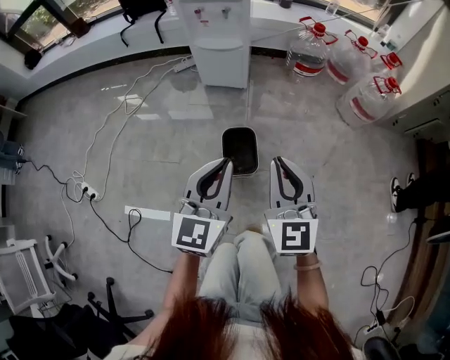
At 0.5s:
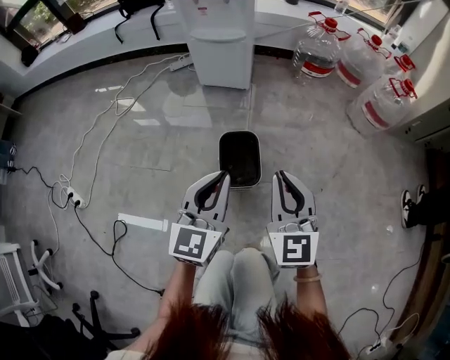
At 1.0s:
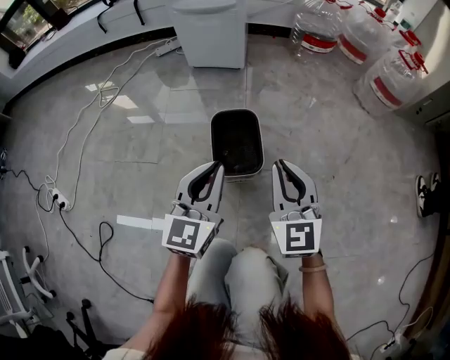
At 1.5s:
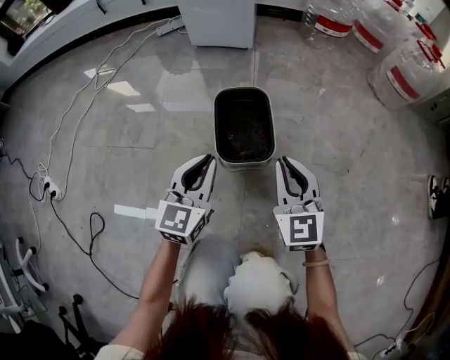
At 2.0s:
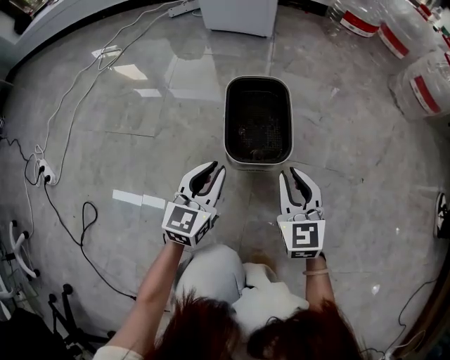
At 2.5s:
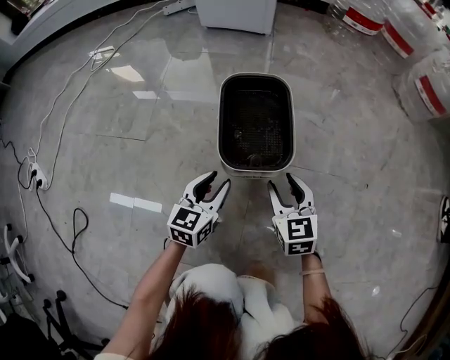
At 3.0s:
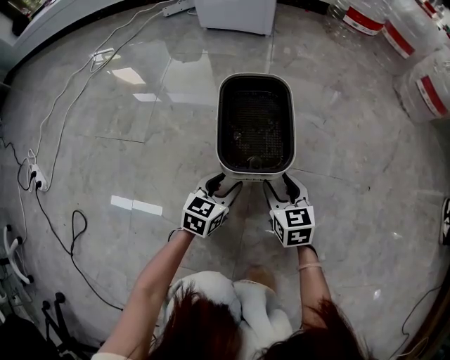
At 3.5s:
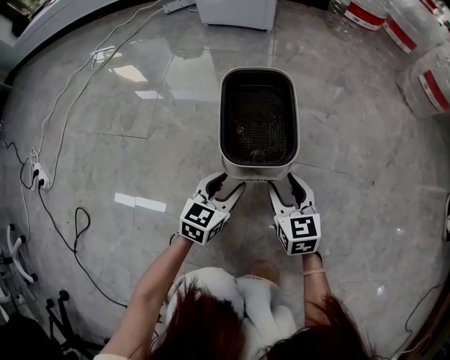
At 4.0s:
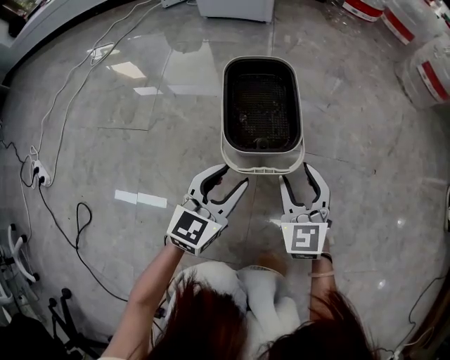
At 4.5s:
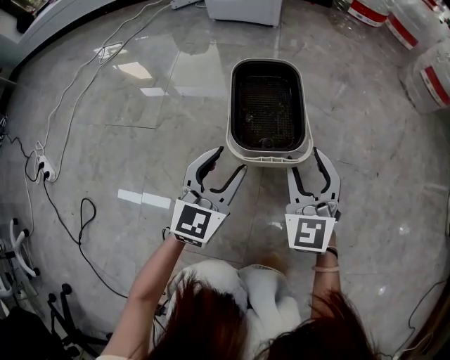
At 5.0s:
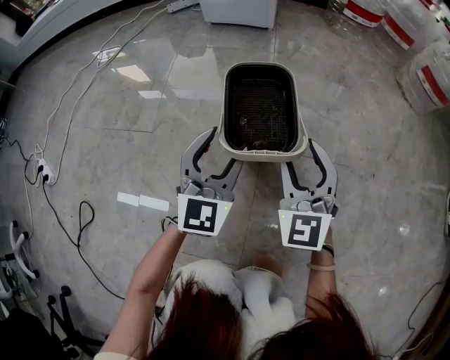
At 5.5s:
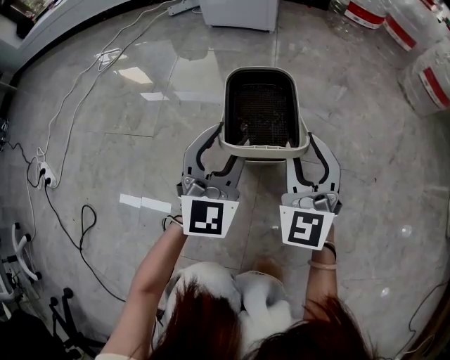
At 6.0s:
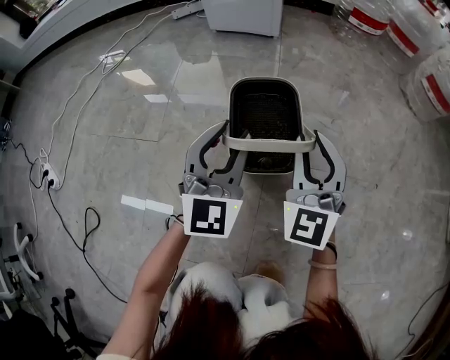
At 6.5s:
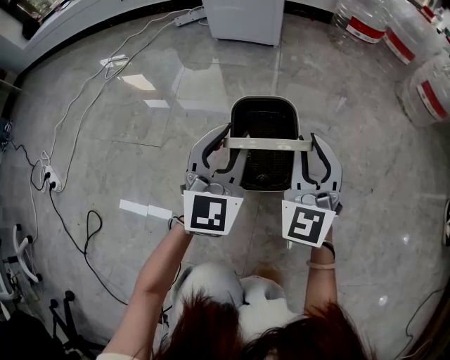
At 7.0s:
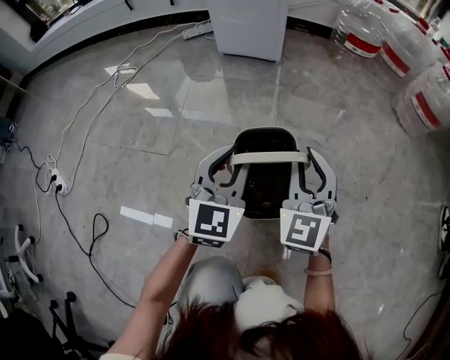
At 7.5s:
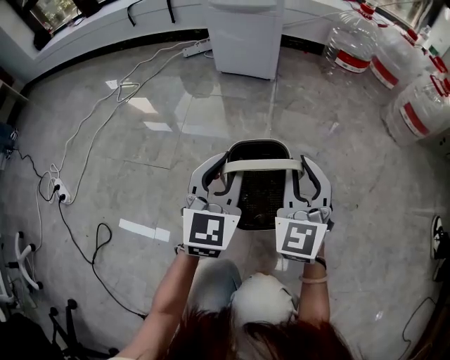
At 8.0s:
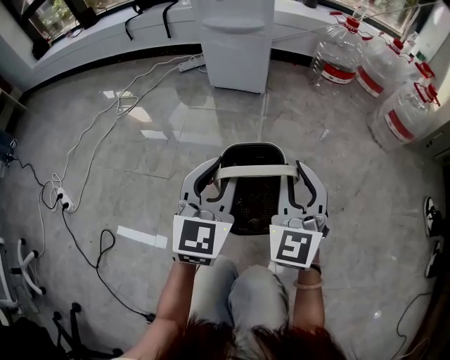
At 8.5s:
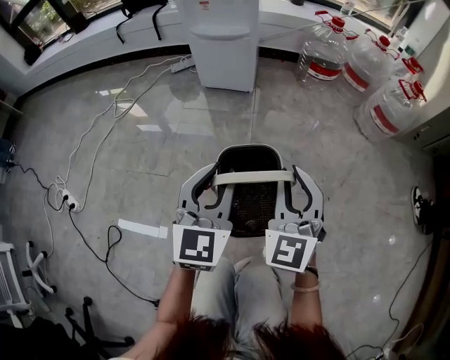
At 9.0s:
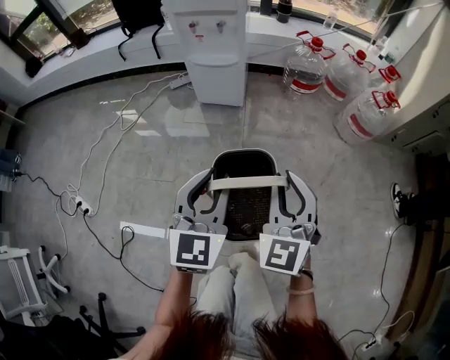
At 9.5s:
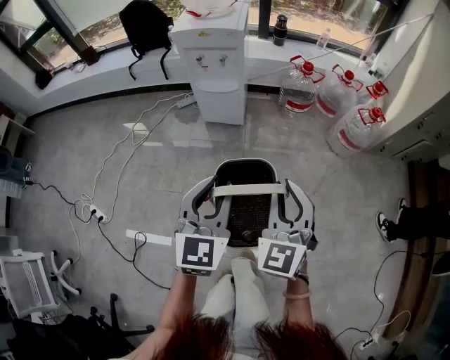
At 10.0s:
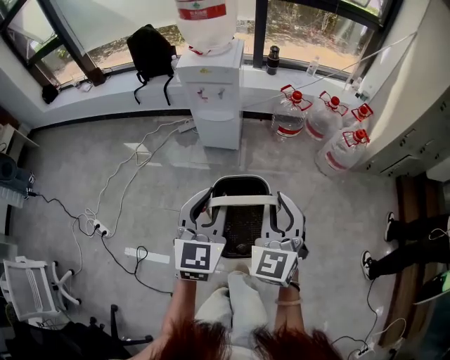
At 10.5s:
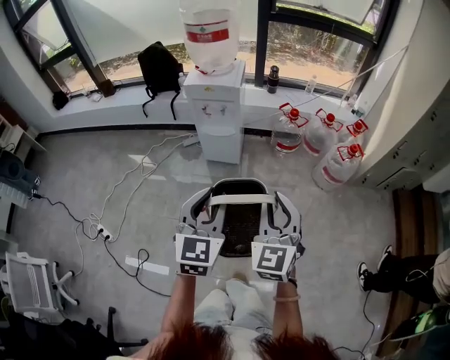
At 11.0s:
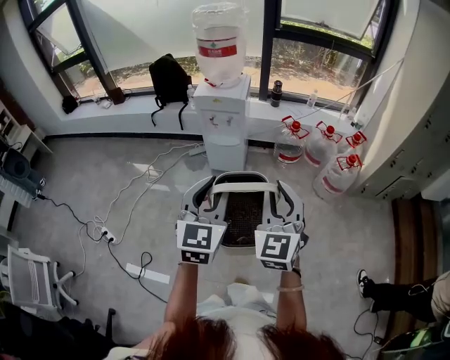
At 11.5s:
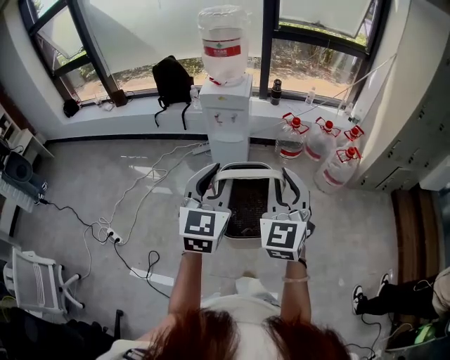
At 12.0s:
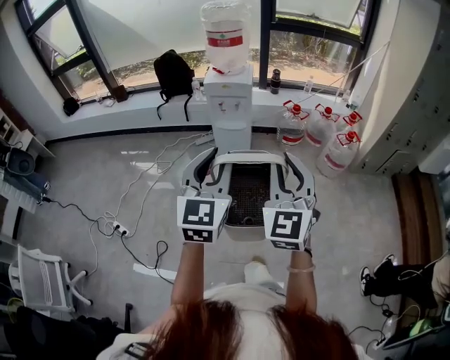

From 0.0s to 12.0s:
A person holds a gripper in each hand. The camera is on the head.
From 0.0s to 2.0s: Both grippers move downward, about 50 cm.
From 2.0s to 4.0s: The right gripper goes downward and returns, roughly 15 cm each way, and opens up. The left gripper moves some 15 cm downward and comes back, and opens its fingers.
From 4.0s to 6.0s: The grippers both shift upward and forward by approximately 15 cm. The left gripper turns by approximately 30 degrees; the right gripper changes its angle by some 20 degrees, and closes its fingers.
From 6.0s to 8.0s: The two grippers go about 20 cm upward.
From 8.0s to 10.0s: The grippers both shift upward by some 50 cm.
From 10.0s to 12.0s: The grippers both shift upward and backward by roughly 25 cm.

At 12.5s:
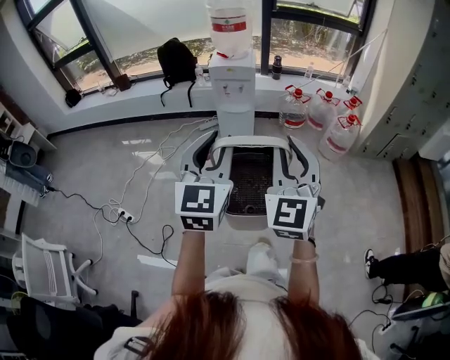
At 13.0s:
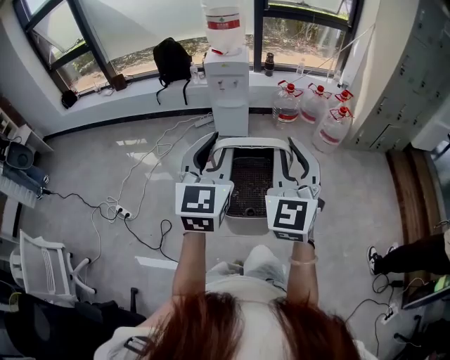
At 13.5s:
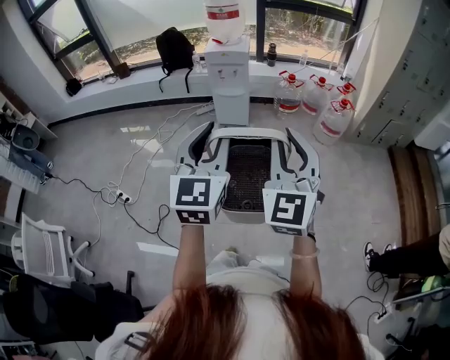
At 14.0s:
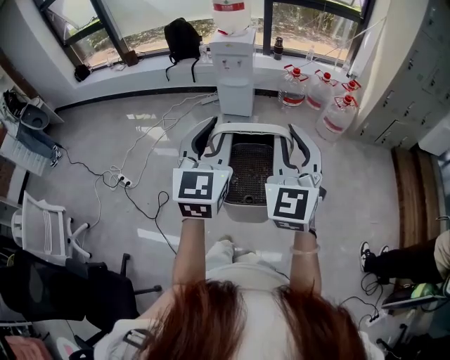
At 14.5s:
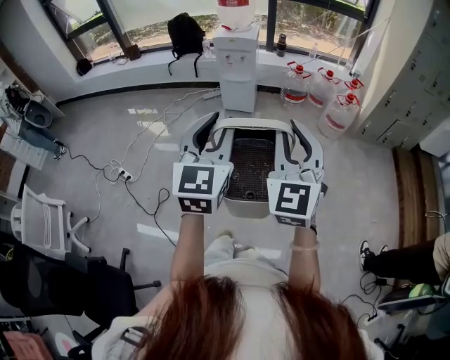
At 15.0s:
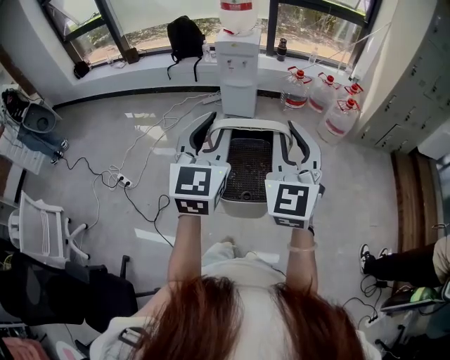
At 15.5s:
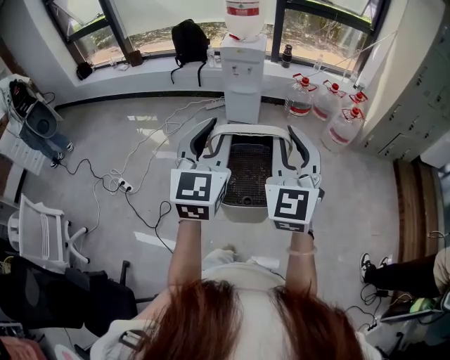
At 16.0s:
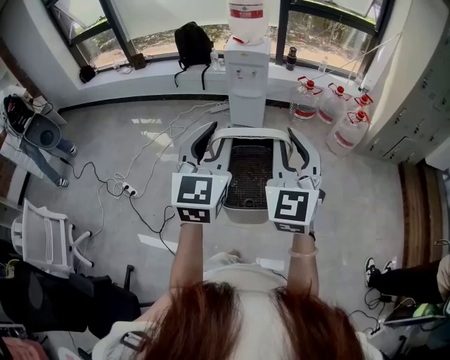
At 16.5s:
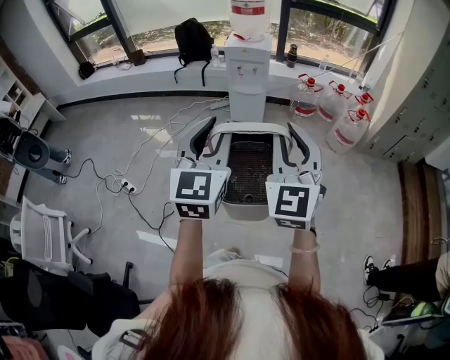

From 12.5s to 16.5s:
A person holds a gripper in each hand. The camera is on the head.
From 12.5s to 14.5s: Both grippers move backward and to the right, some 15 cm.
From 14.5s to 16.5s: The left gripper is displaced to the left and forward by some 10 cm; the right gripper travels forward and to the left by some 10 cm.

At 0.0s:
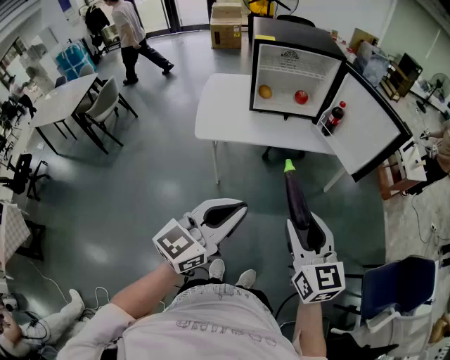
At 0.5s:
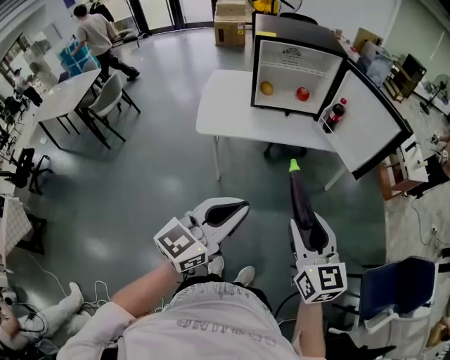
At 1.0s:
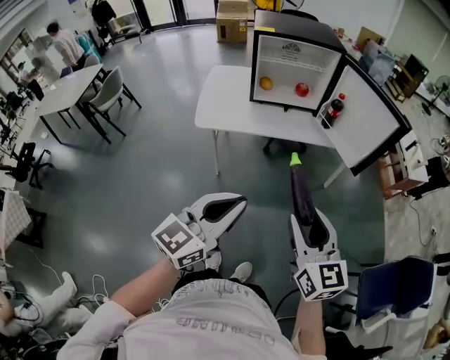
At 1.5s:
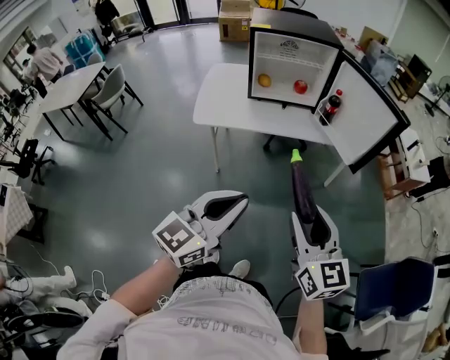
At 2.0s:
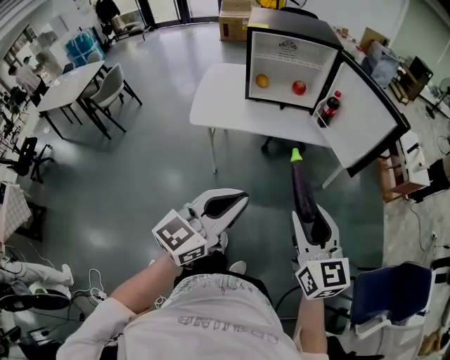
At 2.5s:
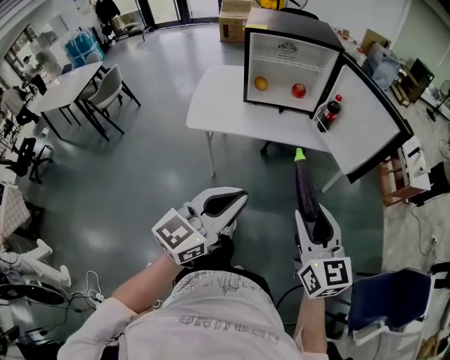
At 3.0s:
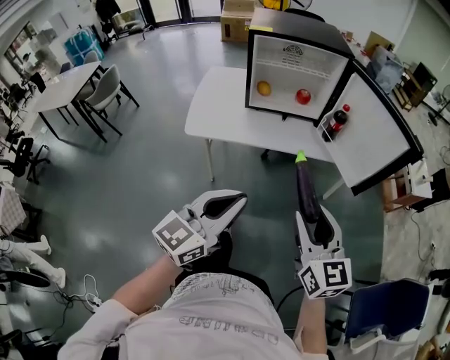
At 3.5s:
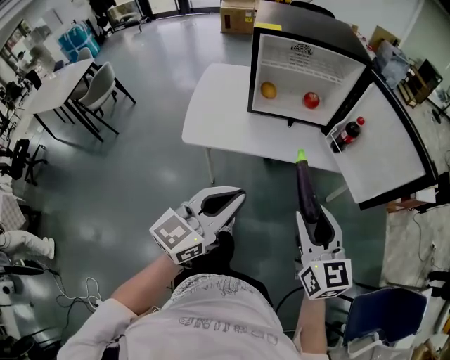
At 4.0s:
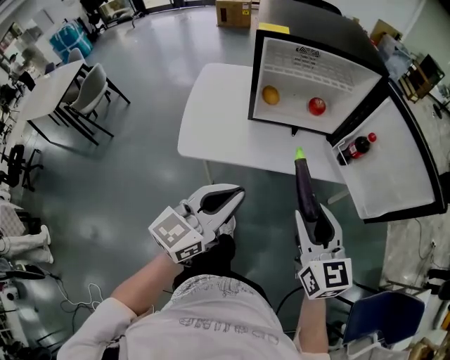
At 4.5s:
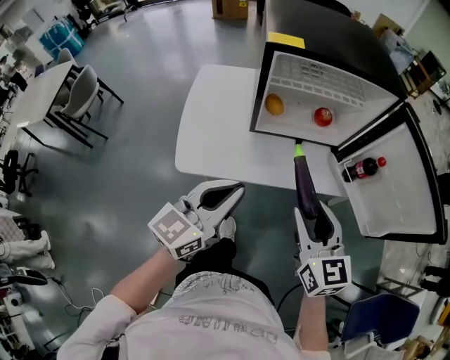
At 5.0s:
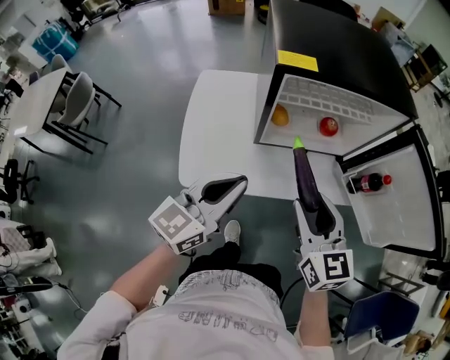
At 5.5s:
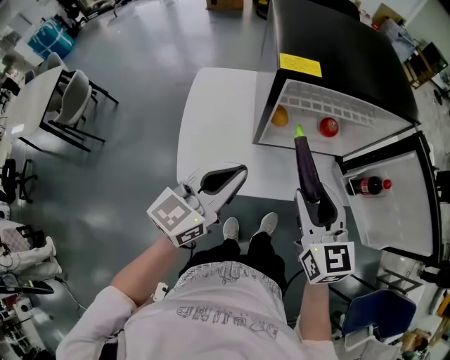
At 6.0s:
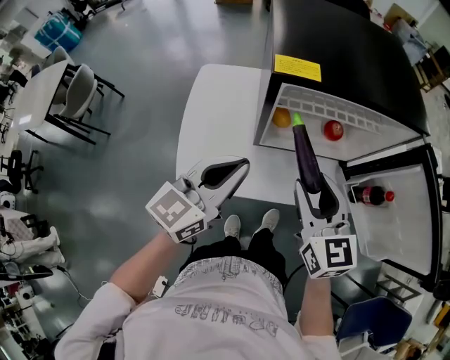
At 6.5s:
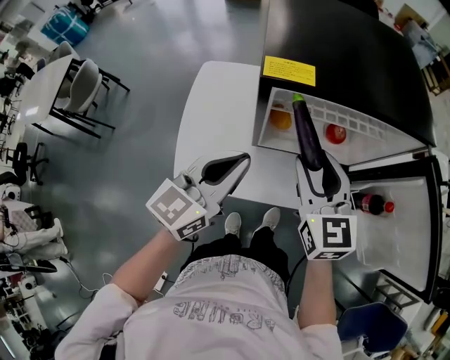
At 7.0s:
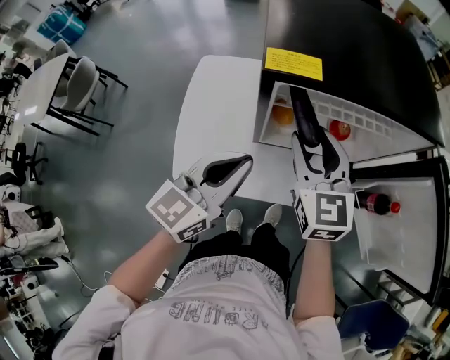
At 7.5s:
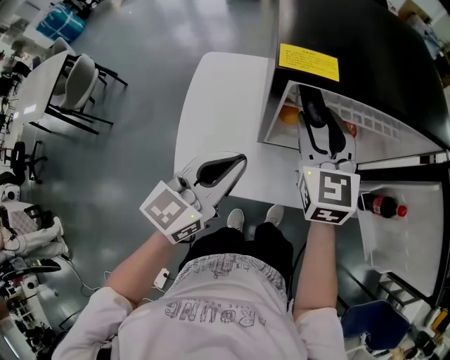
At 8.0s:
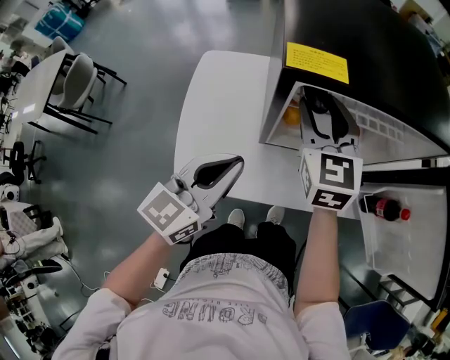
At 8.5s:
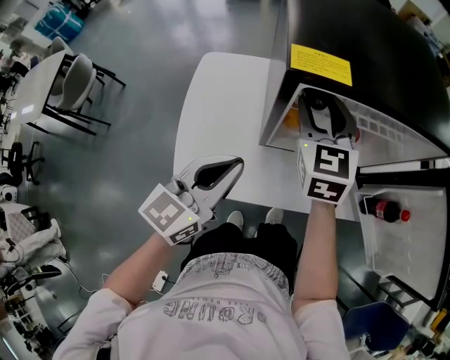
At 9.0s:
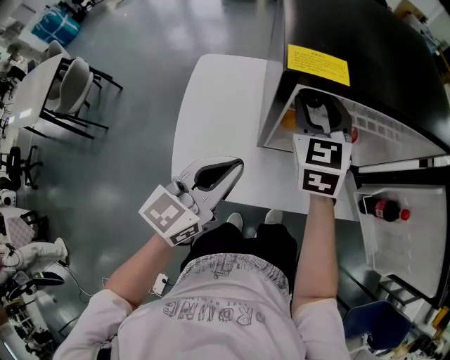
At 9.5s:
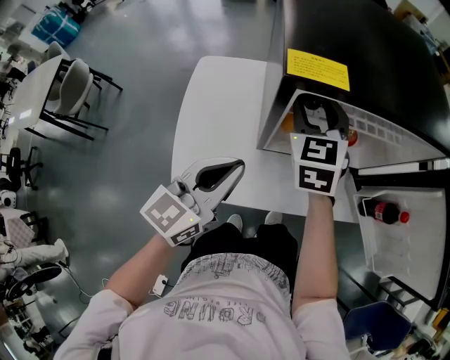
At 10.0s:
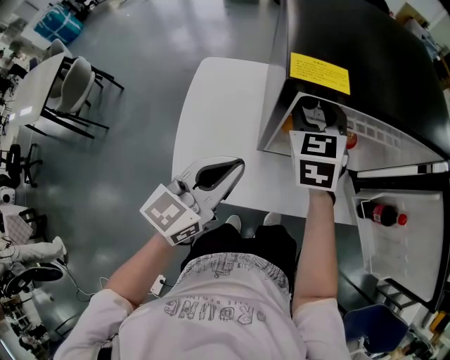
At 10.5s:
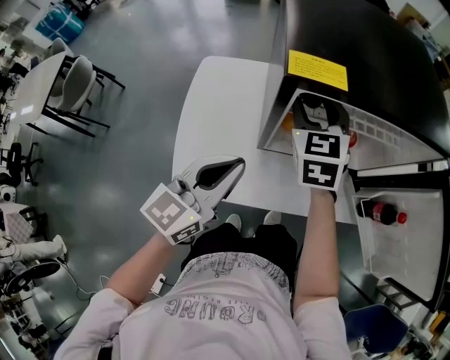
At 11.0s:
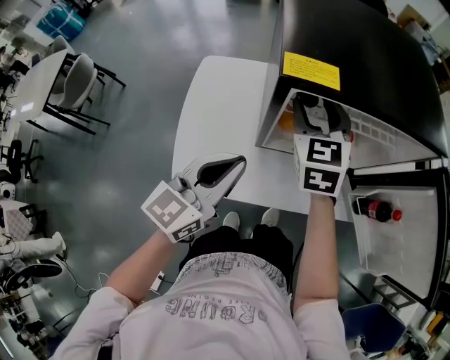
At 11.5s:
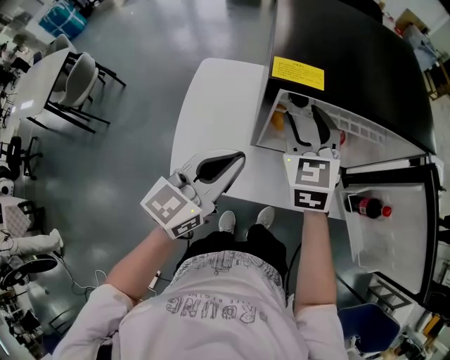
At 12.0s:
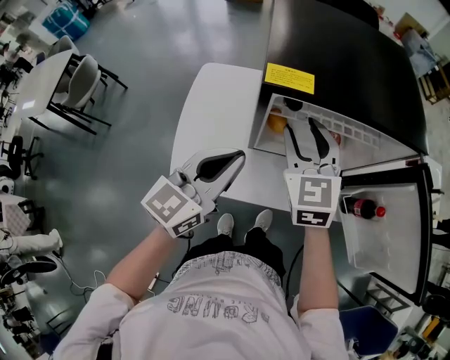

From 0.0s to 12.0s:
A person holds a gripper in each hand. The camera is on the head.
From 0.0s to 2.0s: The grippers both shift to the right by roughly 10 cm.
From 2.0s to 4.0s: The right gripper travels forward by some 25 cm, while the left gripper goes roughly 30 cm forward and to the left.
From 4.0s to 6.0s: The left gripper shifts roughly 25 cm forward. The right gripper travels forward and to the left by about 25 cm.
From 6.0s to 8.0s: The right gripper goes roughly 15 cm forward, while the left gripper goes approximately 5 cm downward.
From 8.0s to 10.0s: The grippers move only a little.
From 10.0s to 12.0s: The right gripper heads backward and upward, covering about 10 cm; the left gripper travels upward by approximately 5 cm.
